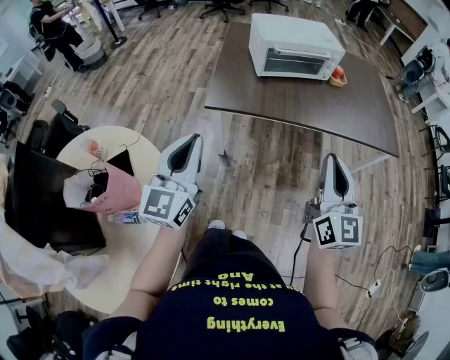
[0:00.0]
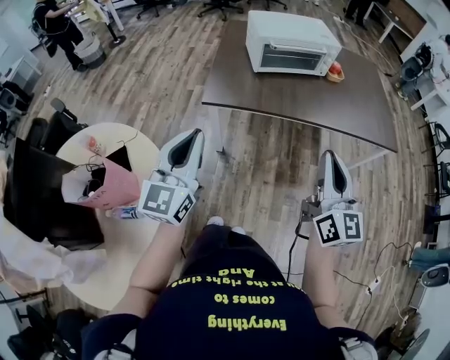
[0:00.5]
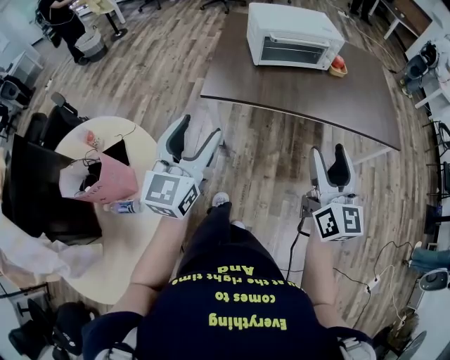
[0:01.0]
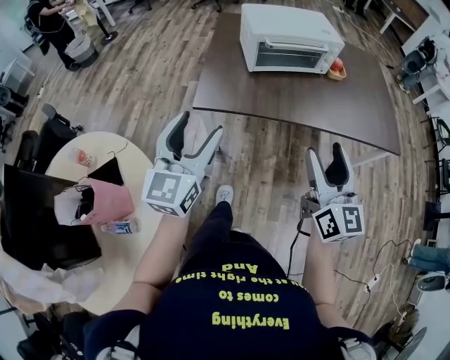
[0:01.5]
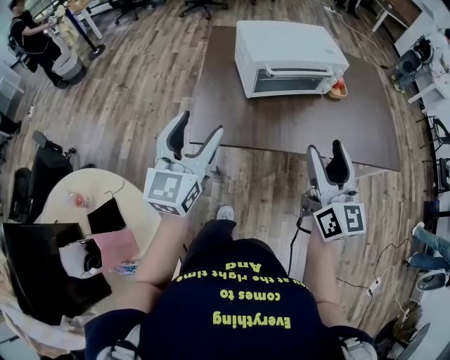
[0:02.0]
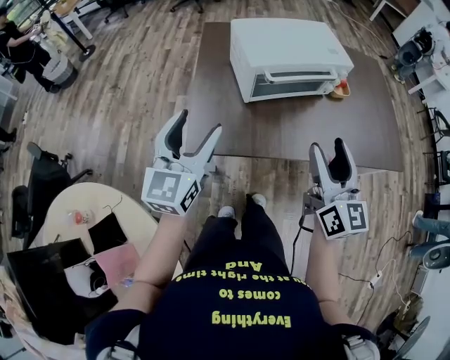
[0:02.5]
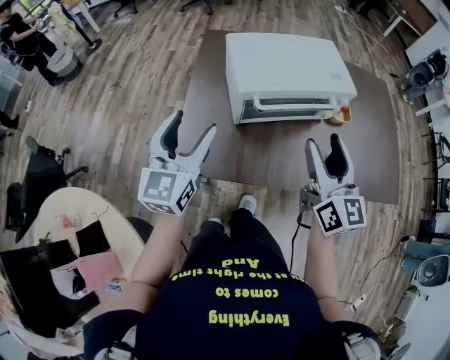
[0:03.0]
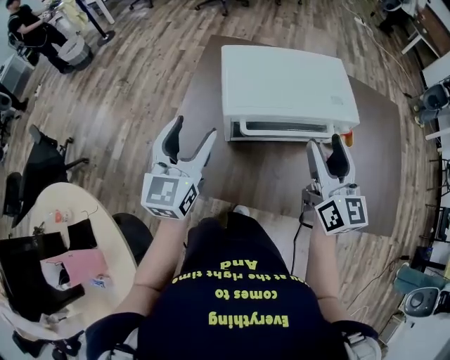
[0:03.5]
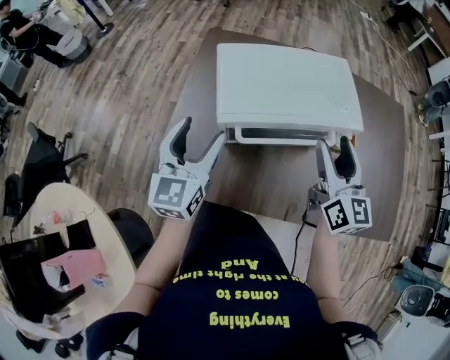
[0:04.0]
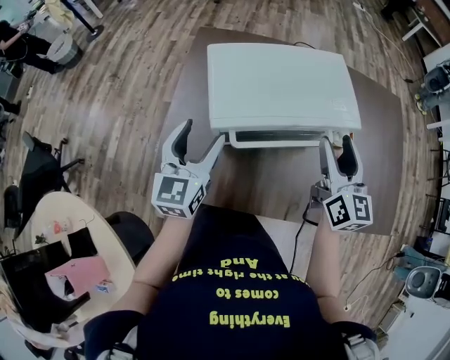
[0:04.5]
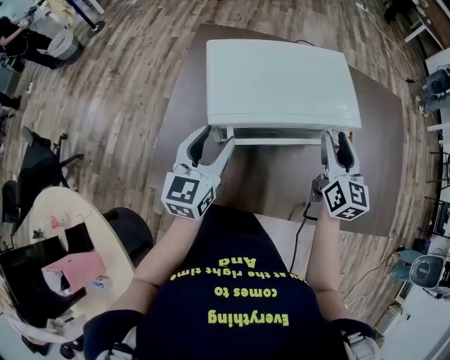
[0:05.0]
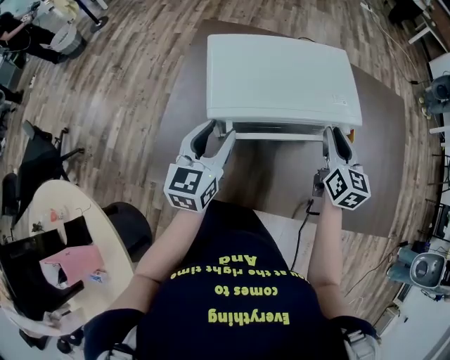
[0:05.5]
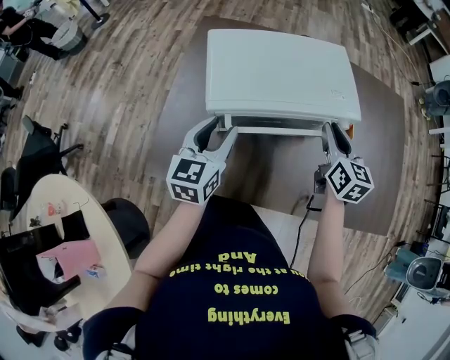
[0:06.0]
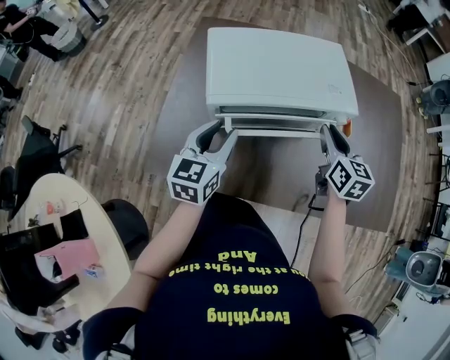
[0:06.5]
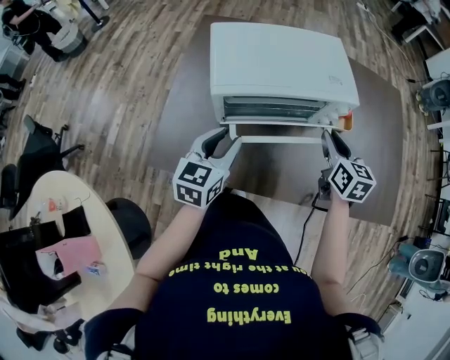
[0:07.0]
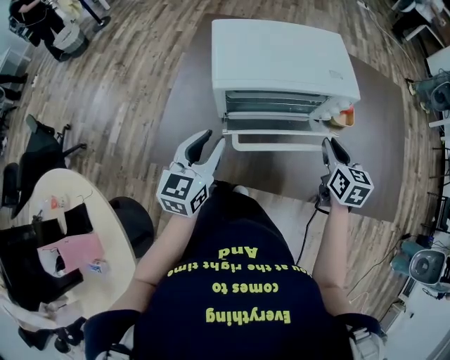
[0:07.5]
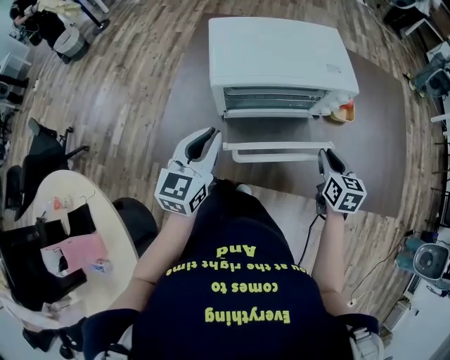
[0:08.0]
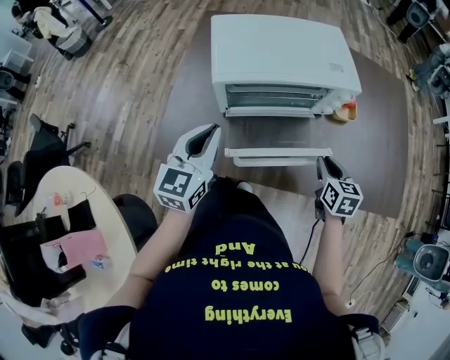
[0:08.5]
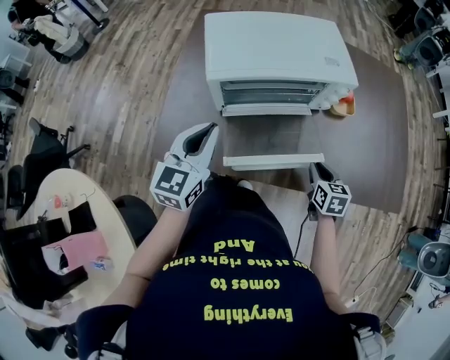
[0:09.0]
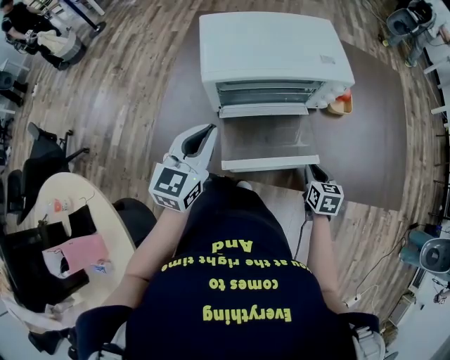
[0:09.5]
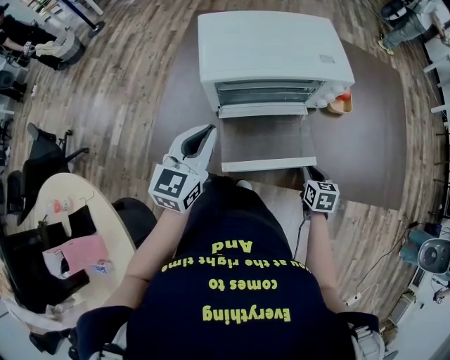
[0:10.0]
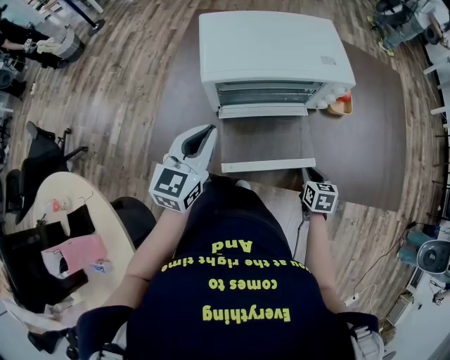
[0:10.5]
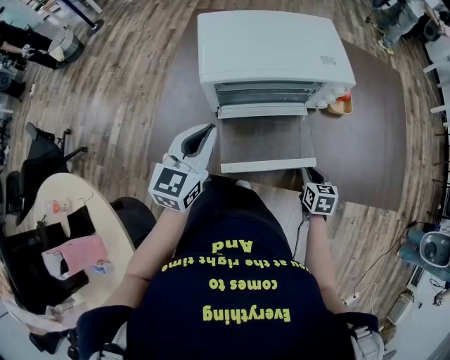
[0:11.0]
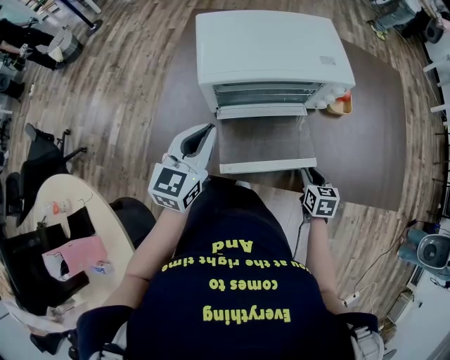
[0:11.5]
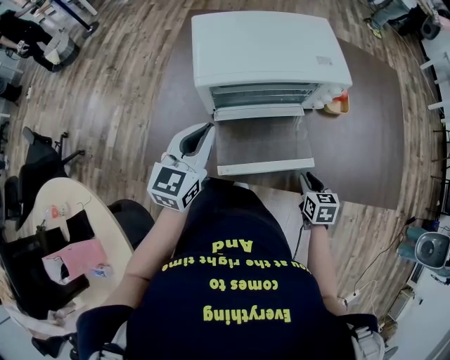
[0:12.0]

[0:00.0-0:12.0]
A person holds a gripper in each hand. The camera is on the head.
0:00.0 to 0:02.0: The grippers both shift forward by some 20 cm. The right gripper opens, while the left gripper opens its fingers.
0:02.0 to 0:04.0: Both grippers travel together forward and to the right, about 30 cm.
0:04.0 to 0:06.0: The left gripper goes about 10 cm to the right and downward, and closes up. The right gripper shifts some 10 cm downward and to the right, and closes.
0:06.0 to 0:08.0: The right gripper travels backward and downward by about 15 cm, while the left gripper moves backward, some 10 cm, and closes its fingers.
0:08.0 to 0:10.0: The right gripper travels downward and backward by approximately 15 cm.
0:10.0 to 0:12.0: The grippers make only small movements.

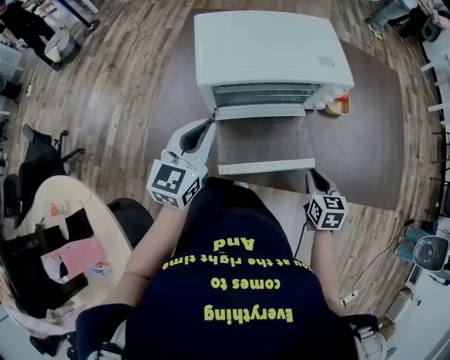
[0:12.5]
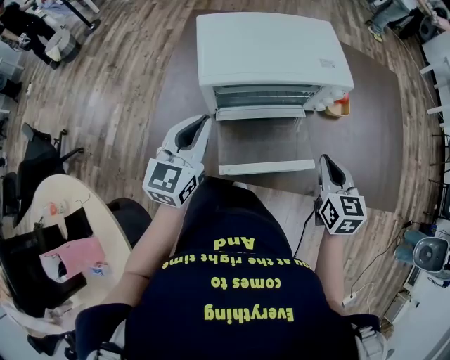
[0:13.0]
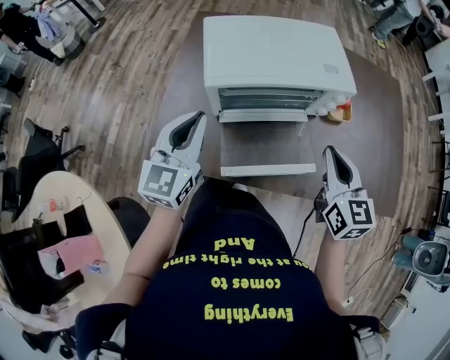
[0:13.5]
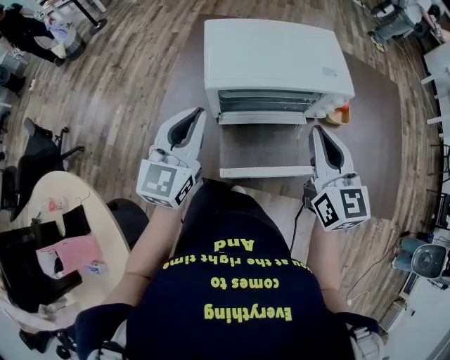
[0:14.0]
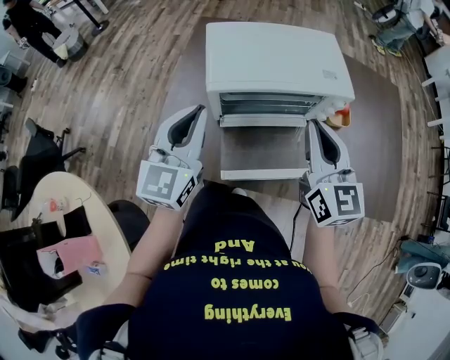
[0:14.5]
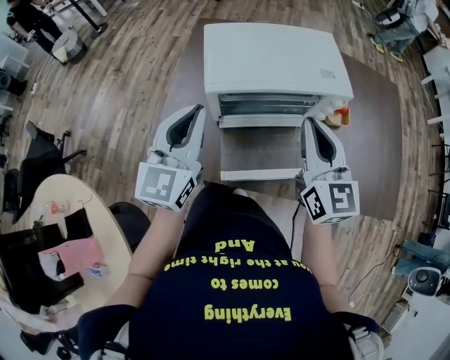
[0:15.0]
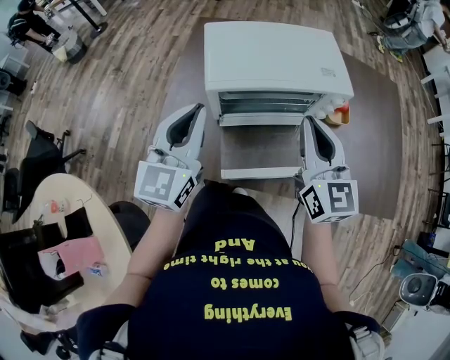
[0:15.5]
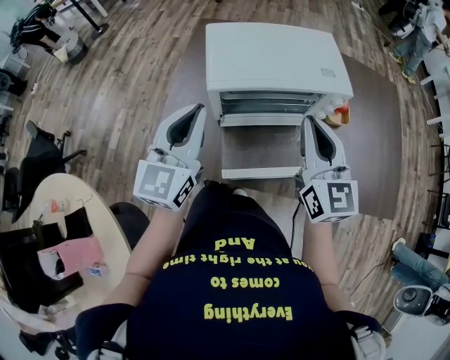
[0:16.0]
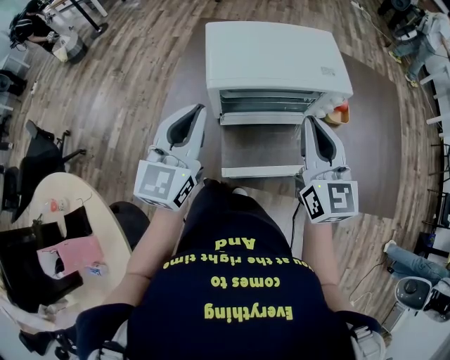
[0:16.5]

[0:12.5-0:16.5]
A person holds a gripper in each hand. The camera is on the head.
0:12.5 to 0:14.5: The left gripper is displaced upward by about 10 cm; the right gripper shifts roughly 30 cm upward and to the left, and points its fingers approximately 40 degrees further upward.
0:14.5 to 0:16.5: Both grippers stay put.

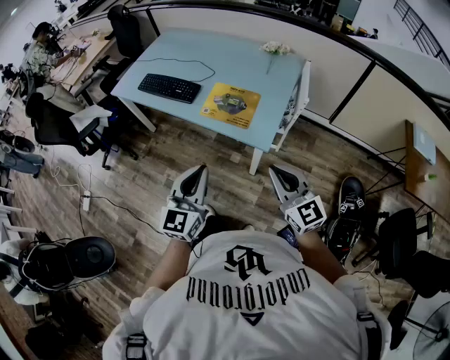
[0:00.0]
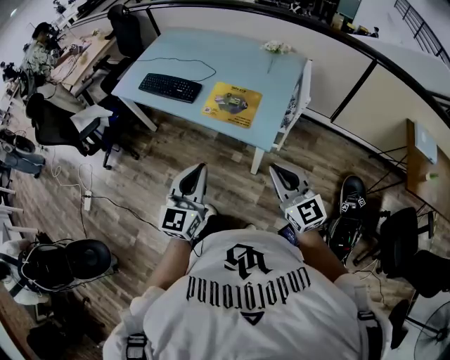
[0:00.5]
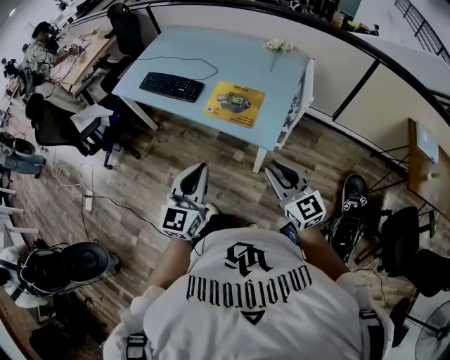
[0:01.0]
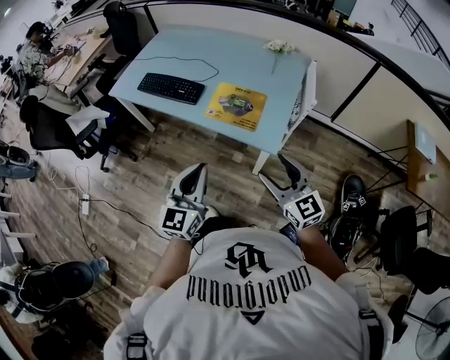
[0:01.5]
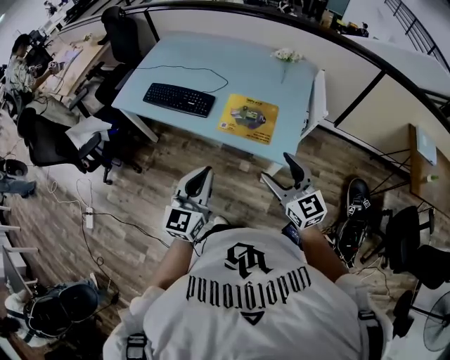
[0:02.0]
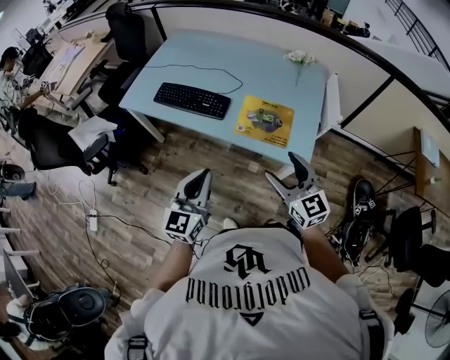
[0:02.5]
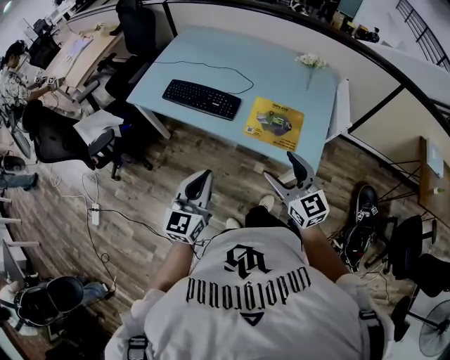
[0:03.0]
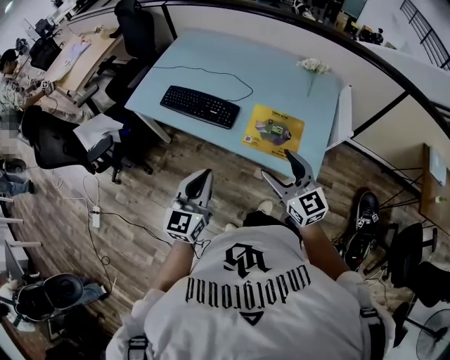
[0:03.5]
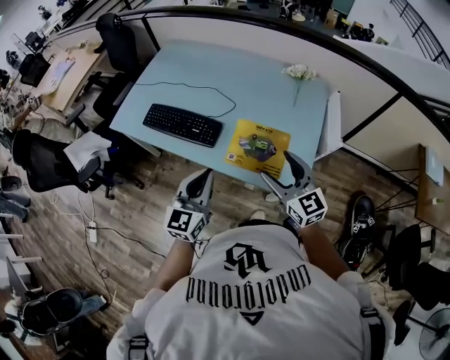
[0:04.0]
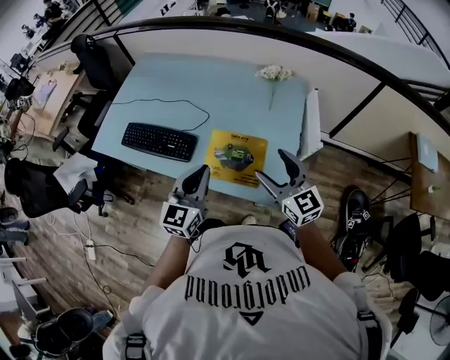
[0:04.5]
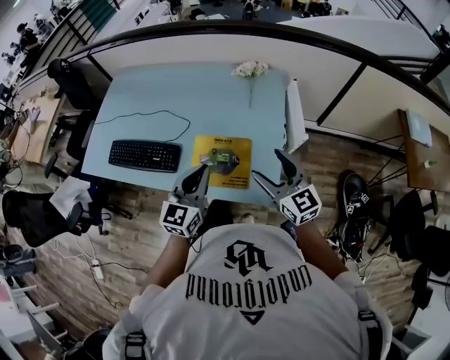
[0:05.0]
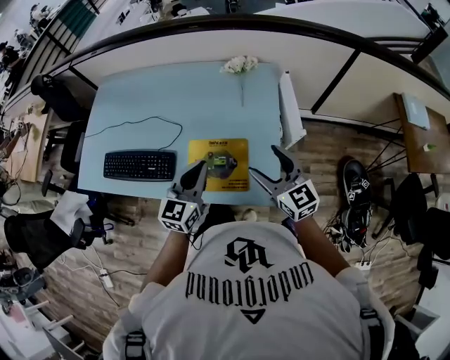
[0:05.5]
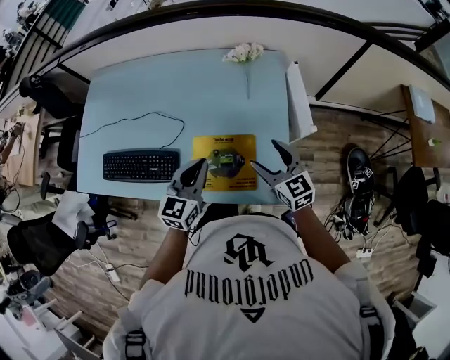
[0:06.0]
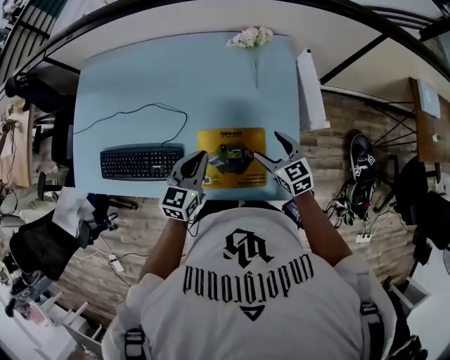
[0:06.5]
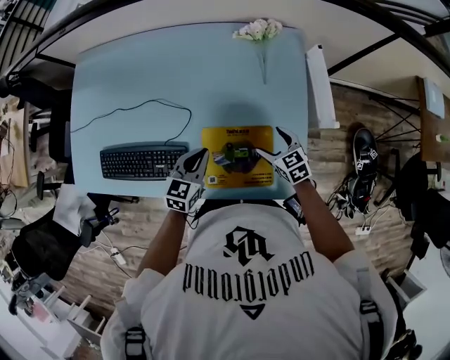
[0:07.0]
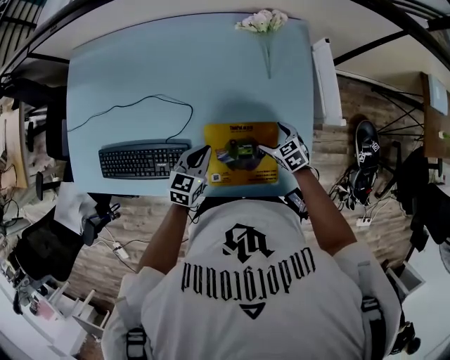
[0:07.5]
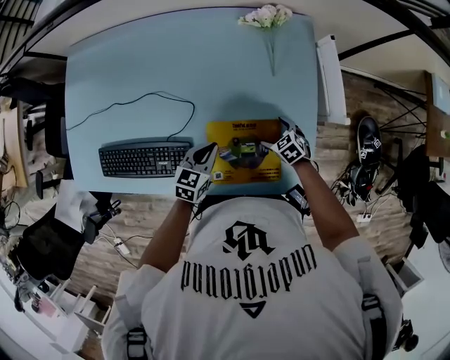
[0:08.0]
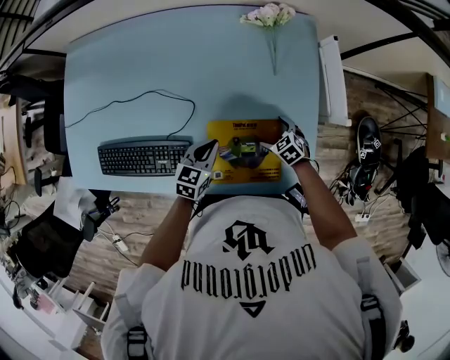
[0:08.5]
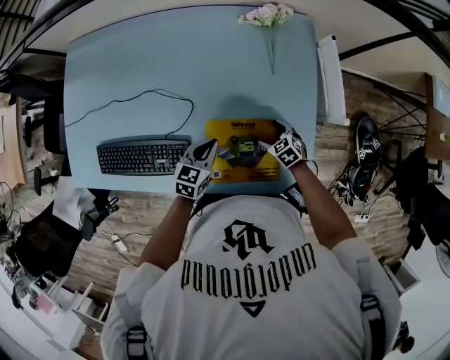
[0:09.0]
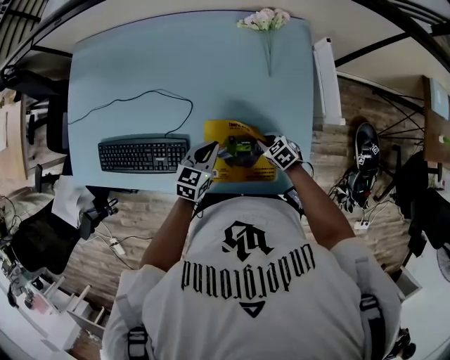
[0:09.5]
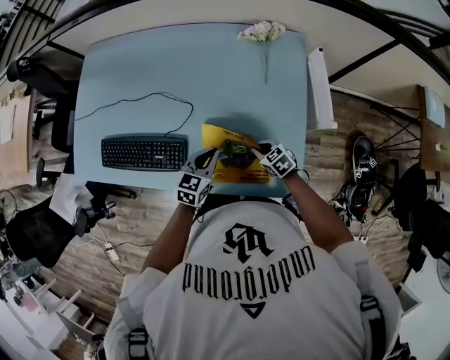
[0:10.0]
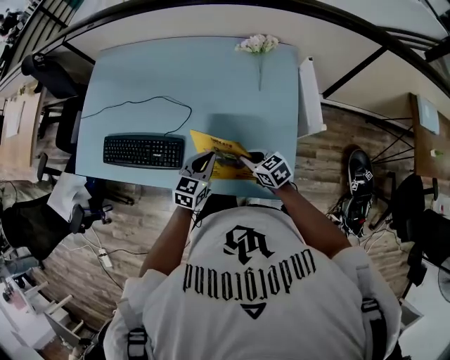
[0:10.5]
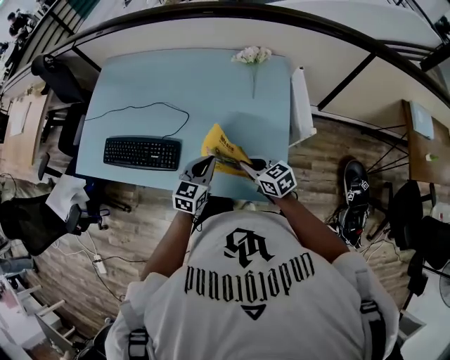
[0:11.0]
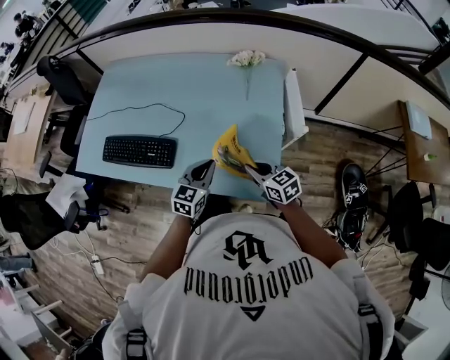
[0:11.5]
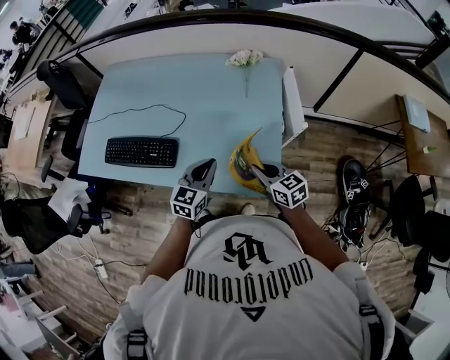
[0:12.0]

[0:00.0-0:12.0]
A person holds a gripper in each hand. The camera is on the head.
0:00.0 to 0:02.0: The grippers both shift forward and to the left by some 15 cm. The right gripper opens.
0:02.0 to 0:04.0: Both grippers travel together forward, some 20 cm.
0:04.0 to 0:06.0: The right gripper shifts some 25 cm forward, to the right and downward, and rotates some 20 degrees, while the left gripper moves forward and to the right, roughly 25 cm, and swivels about 20 degrees.
0:06.0 to 0:08.0: The left gripper travels downward and forward by roughly 20 cm, and changes its angle by approximately 30 degrees; the right gripper travels downward by roughly 30 cm, and tilts its fingers some 40 degrees downward.
0:08.0 to 0:10.0: The right gripper travels backward by some 5 cm, and closes, while the left gripper changes place by roughly 5 cm.
0:10.0 to 0:12.0: The left gripper shifts some 20 cm backward and upward. Meanwhile the right gripper goes some 25 cm upward and backward, and rotates roughly 30 degrees.
